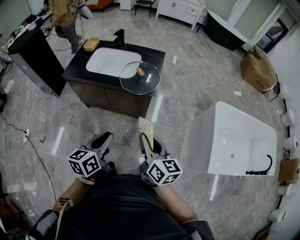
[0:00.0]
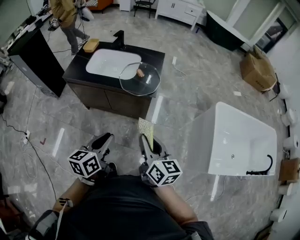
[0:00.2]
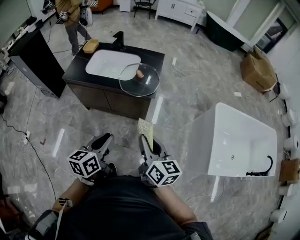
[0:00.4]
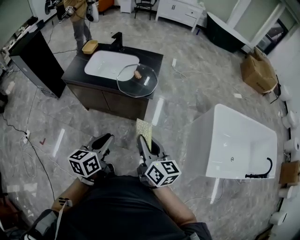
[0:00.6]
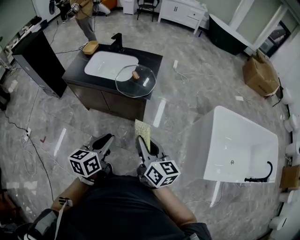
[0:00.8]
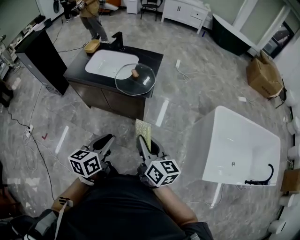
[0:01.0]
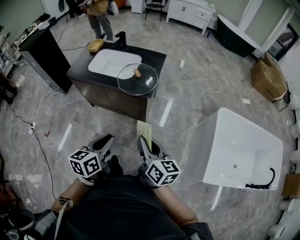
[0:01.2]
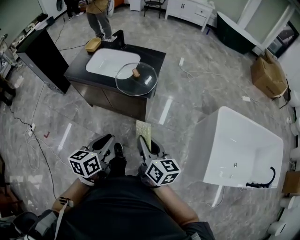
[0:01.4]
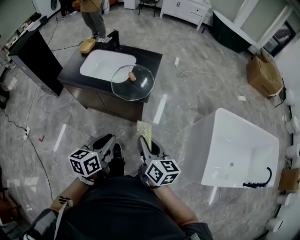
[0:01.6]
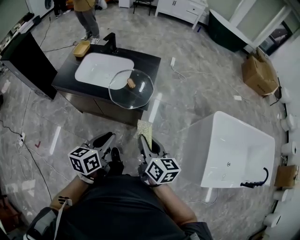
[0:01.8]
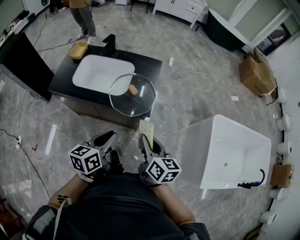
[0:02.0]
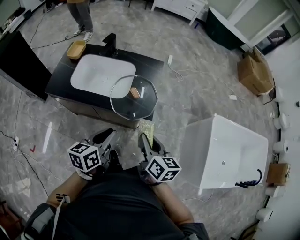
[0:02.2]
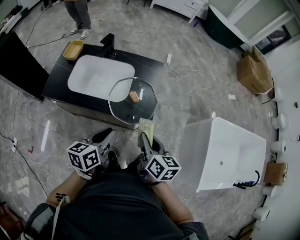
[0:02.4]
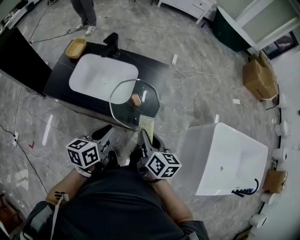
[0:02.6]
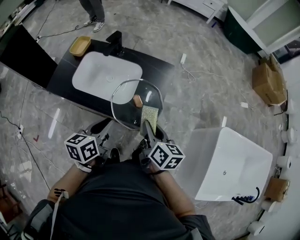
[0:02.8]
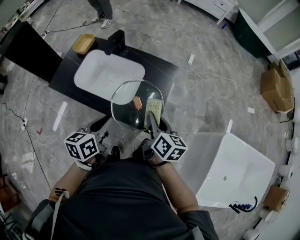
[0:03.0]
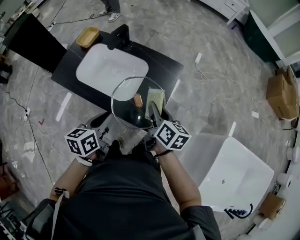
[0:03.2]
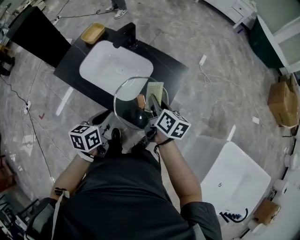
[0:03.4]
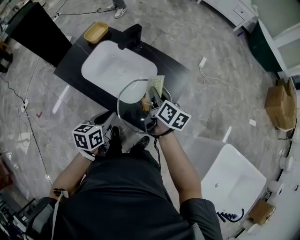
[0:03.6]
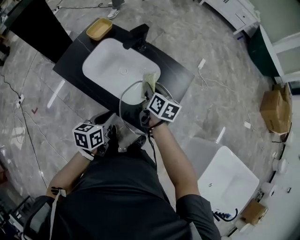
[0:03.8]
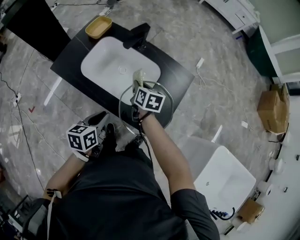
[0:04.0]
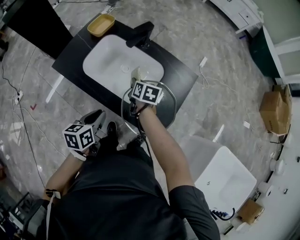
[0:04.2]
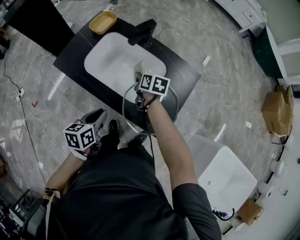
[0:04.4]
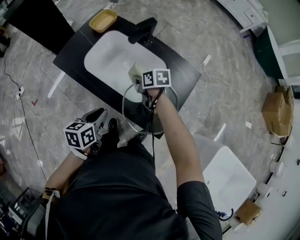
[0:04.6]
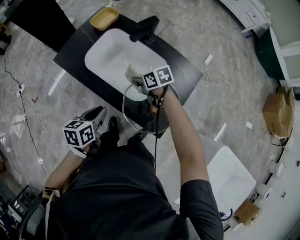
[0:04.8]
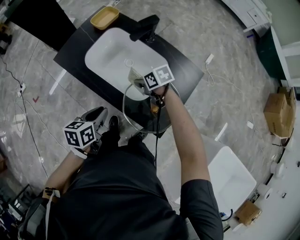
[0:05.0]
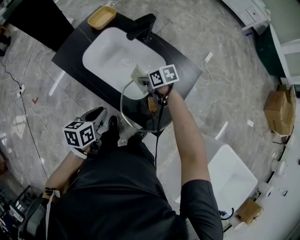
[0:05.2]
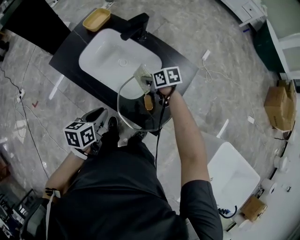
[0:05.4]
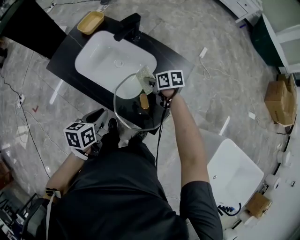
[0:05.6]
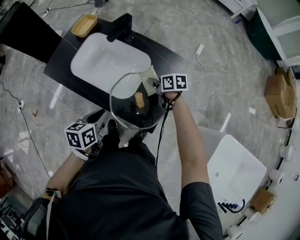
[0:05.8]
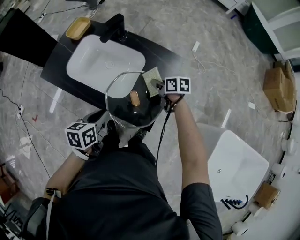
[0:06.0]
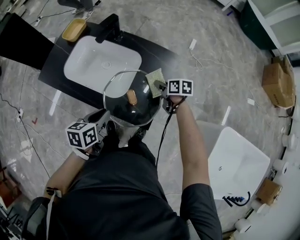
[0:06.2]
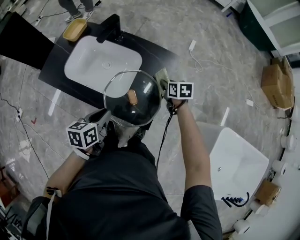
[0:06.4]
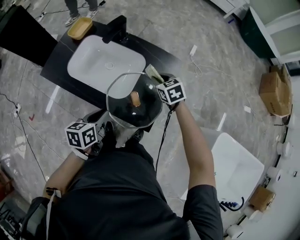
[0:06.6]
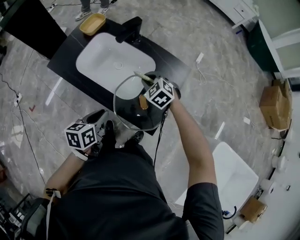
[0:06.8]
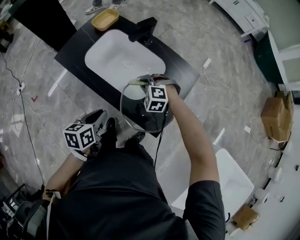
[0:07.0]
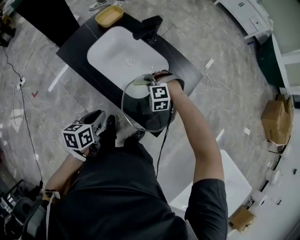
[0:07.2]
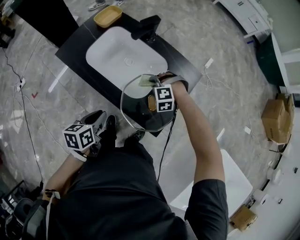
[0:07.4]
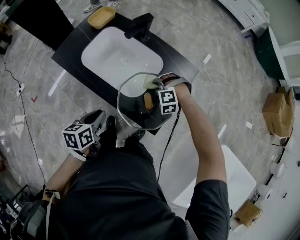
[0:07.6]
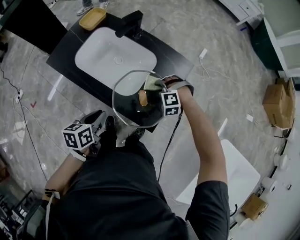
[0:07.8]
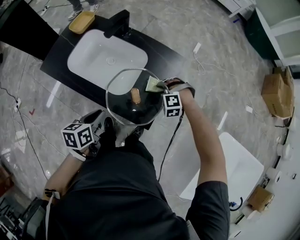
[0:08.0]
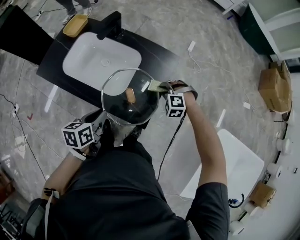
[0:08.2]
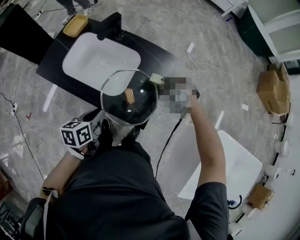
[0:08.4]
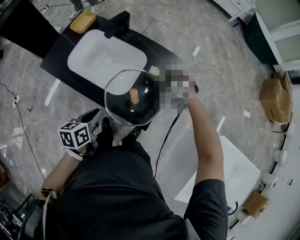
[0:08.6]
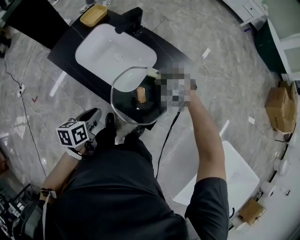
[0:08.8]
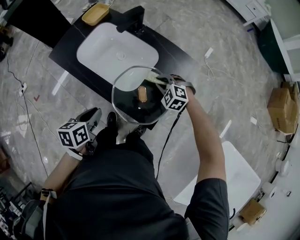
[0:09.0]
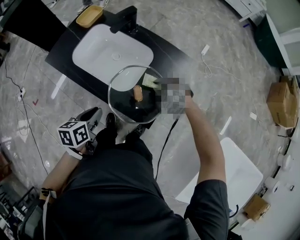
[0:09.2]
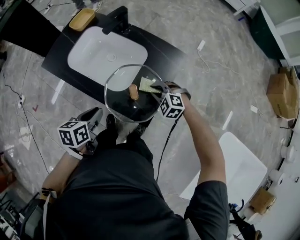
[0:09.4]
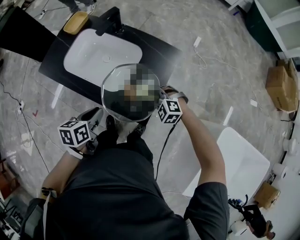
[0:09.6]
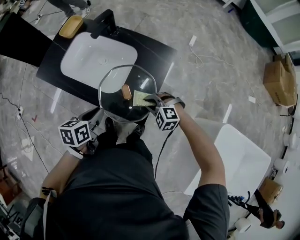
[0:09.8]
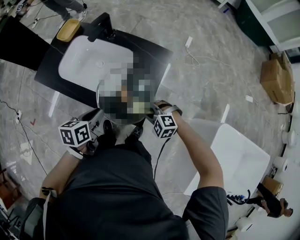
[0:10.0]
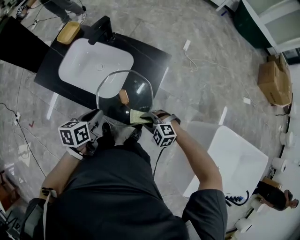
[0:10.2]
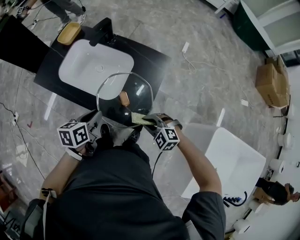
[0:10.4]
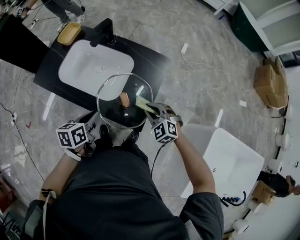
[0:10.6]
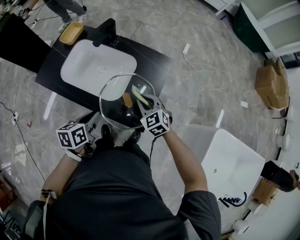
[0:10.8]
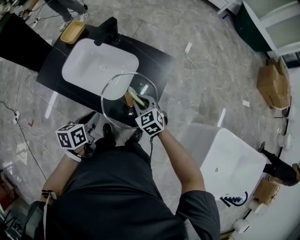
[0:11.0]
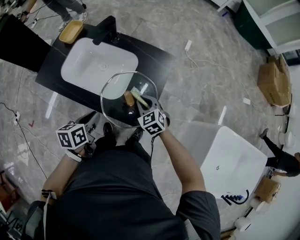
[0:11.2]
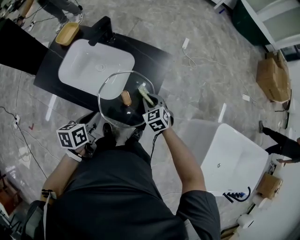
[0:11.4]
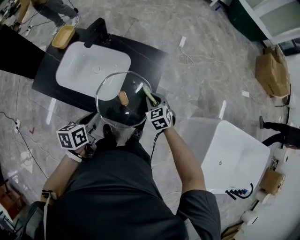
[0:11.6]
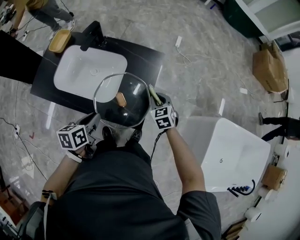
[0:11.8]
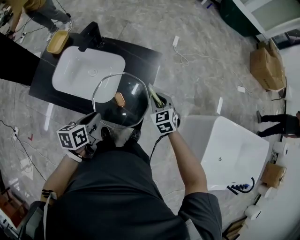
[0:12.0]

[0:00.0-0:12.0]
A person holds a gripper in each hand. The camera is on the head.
0.0 to 1.6 s: Both grippers travel together to the right and forward, approximately 10 cm.
1.6 to 3.0 s: The two grippers go approximately 35 cm forward.
3.0 to 4.4 s: The left gripper is displaced to the left and downward by about 15 cm; the right gripper goes approximately 35 cm forward, to the left and downward, and turns by some 30 degrees.
4.4 to 6.0 s: The left gripper moves to the right, some 10 cm. Meanwhile the right gripper moves to the right and backward, about 20 cm.
6.0 to 7.6 s: The left gripper shifts roughly 10 cm to the left. Meanwhile the right gripper moves left and right over about 25 cm, changing direction 2 times, and rotates around the line of its fingers by about 120 degrees, counterclockwise from behind.
7.6 to 9.0 s: The right gripper moves roughly 15 cm to the right and comes back, and swivels some 30 degrees; the left gripper moves approximately 10 cm to the right and comes back.
9.0 to 10.4 s: The left gripper heads to the right, covering about 5 cm, while the right gripper goes about 20 cm backward.
10.4 to 12.0 s: The right gripper ends up roughly 15 cm from where it was, and changes its angle by approximately 50 degrees.

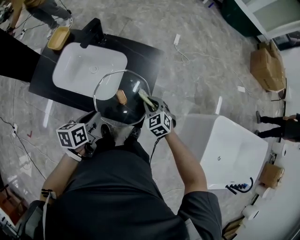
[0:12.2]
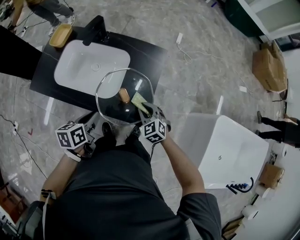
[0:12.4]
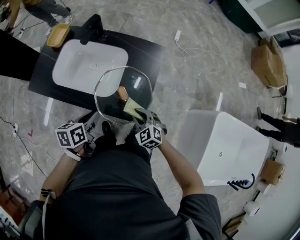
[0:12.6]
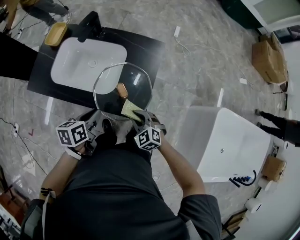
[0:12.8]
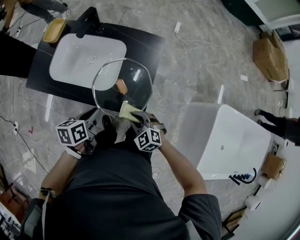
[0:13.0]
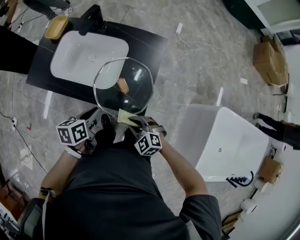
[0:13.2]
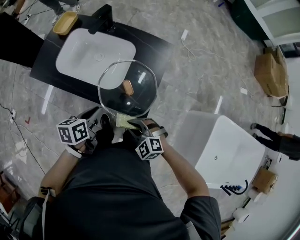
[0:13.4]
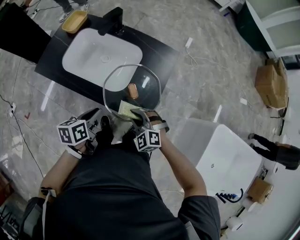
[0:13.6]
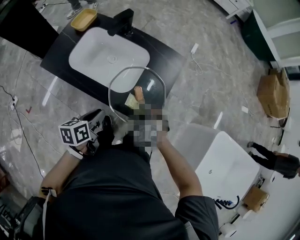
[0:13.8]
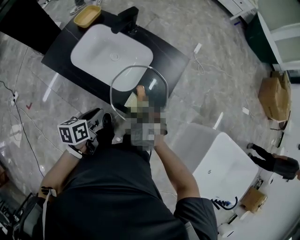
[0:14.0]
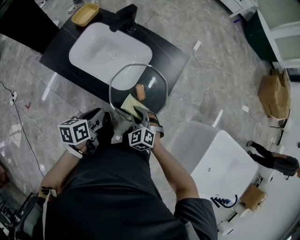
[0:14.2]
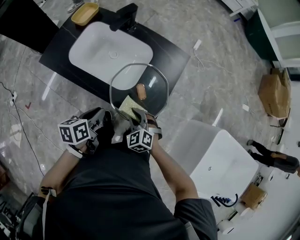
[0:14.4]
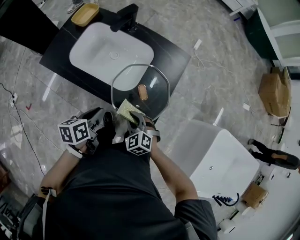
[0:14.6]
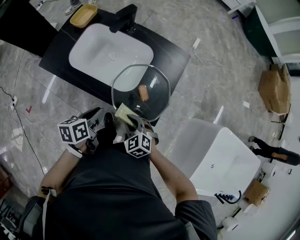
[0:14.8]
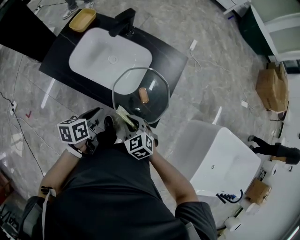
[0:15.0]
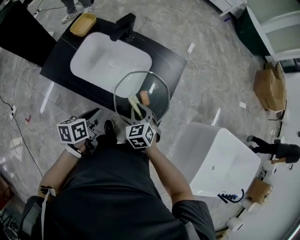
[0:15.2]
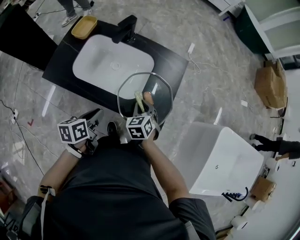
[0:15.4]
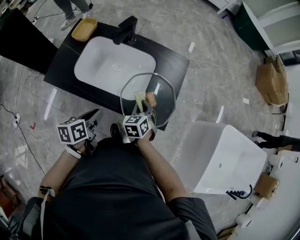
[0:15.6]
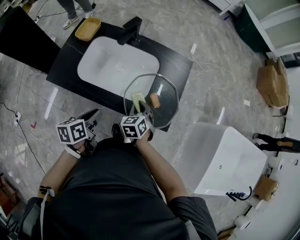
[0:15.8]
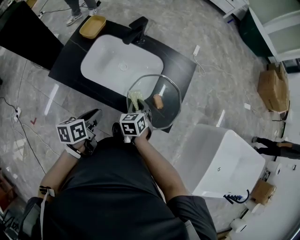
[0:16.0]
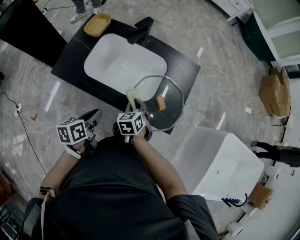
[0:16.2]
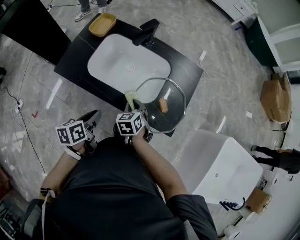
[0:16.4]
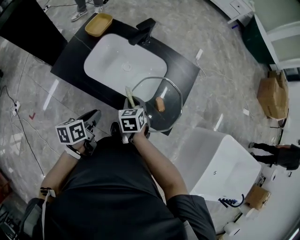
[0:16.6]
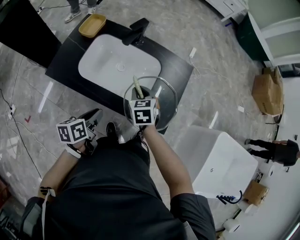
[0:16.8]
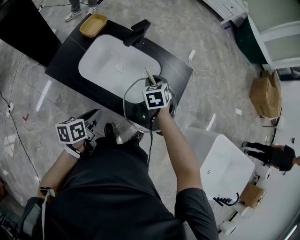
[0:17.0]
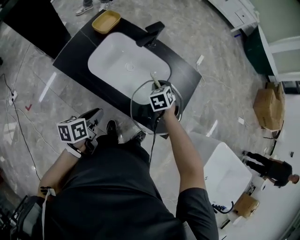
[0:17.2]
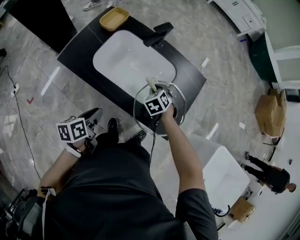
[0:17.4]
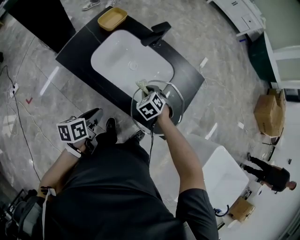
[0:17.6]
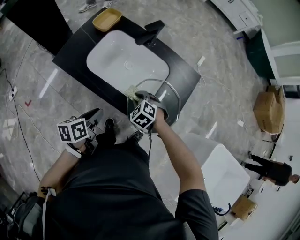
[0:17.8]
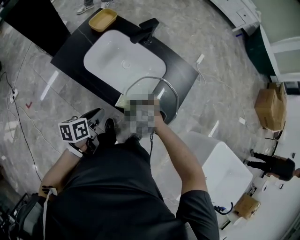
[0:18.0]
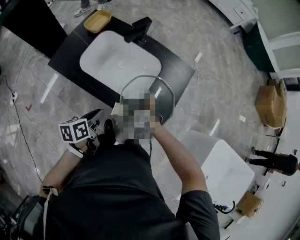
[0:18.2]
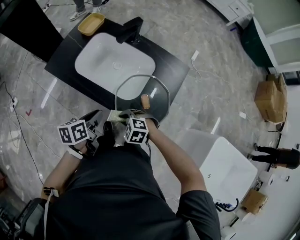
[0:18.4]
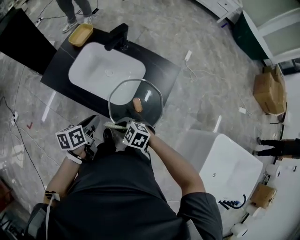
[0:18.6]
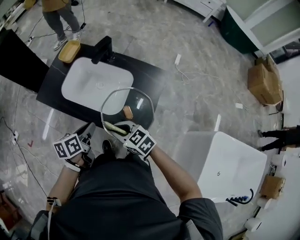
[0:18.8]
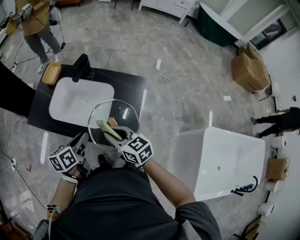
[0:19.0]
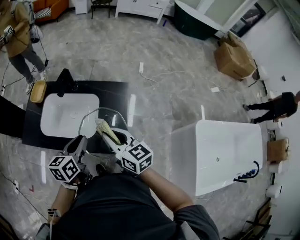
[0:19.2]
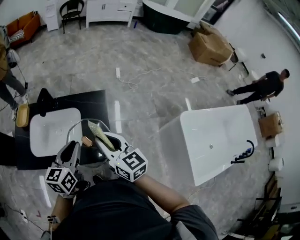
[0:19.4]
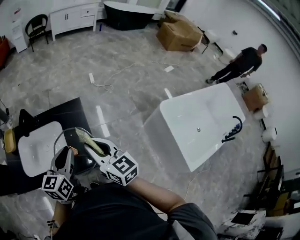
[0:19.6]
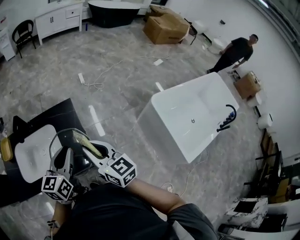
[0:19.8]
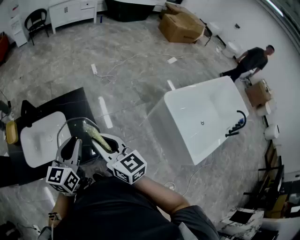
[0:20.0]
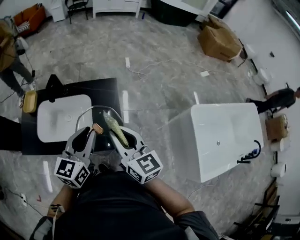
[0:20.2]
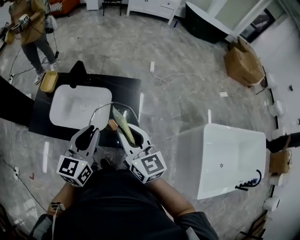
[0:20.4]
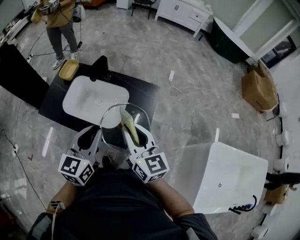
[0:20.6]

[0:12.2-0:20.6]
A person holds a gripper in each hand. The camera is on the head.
12.2 to 13.6 s: The right gripper moves to the left and backward, roughly 15 cm, and rotates roughly 30 degrees.
13.6 to 15.0 s: The grippers both shift to the left by roughly 5 cm. The right gripper turns by about 30 degrees.
15.0 to 16.4 s: The left gripper shifts about 10 cm to the left; the right gripper shifts roughly 15 cm to the left and forward, and turns by roughly 30 degrees.
16.4 to 17.8 s: The right gripper travels forward and back again, approximately 15 cm each way, and rolls counterclockwise, seen from behind, by roughly 40 degrees.
17.8 to 19.2 s: The right gripper shifts some 30 cm upward, and tips its fingers upward by some 50 degrees. Meanwhile the left gripper moves about 30 cm, and changes its angle by roughly 30 degrees.
19.2 to 20.6 s: Both grippers travel together upward, about 5 cm. The left gripper moves some 10 cm to the right and comes back, and changes its angle by about 20 degrees; the right gripper goes to the right and returns, roughly 10 cm each way.

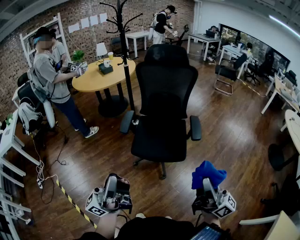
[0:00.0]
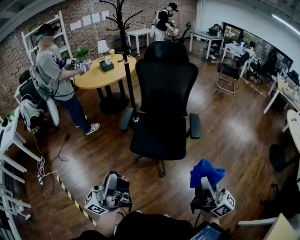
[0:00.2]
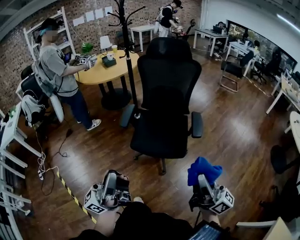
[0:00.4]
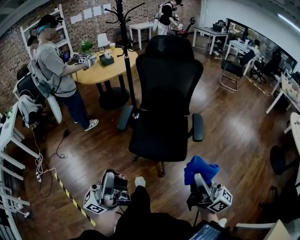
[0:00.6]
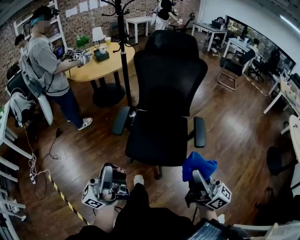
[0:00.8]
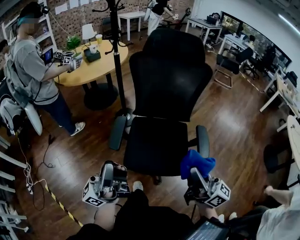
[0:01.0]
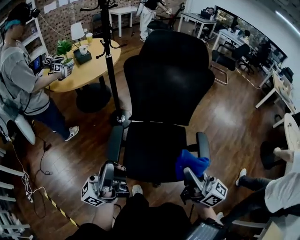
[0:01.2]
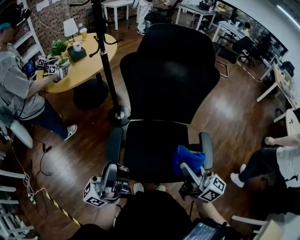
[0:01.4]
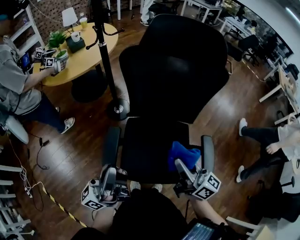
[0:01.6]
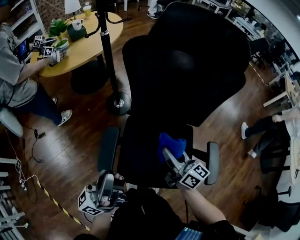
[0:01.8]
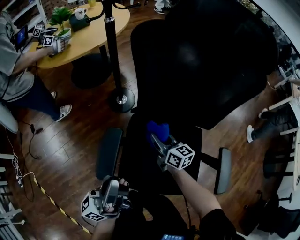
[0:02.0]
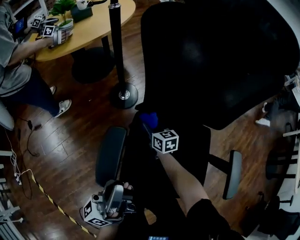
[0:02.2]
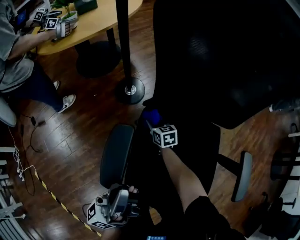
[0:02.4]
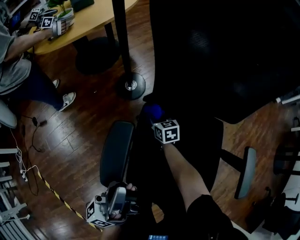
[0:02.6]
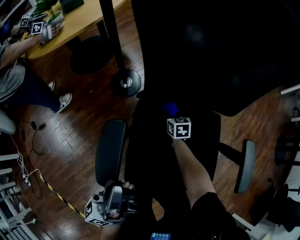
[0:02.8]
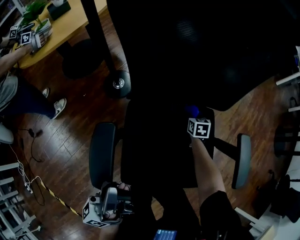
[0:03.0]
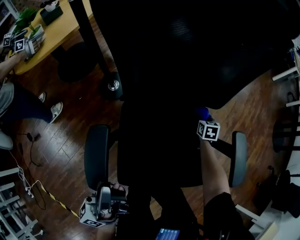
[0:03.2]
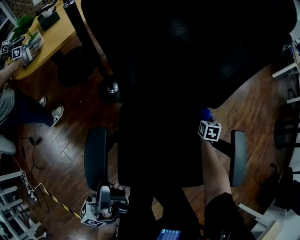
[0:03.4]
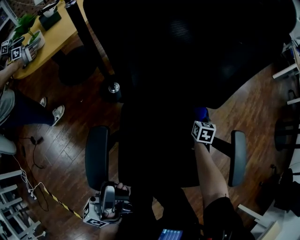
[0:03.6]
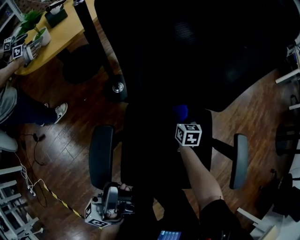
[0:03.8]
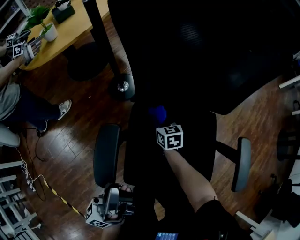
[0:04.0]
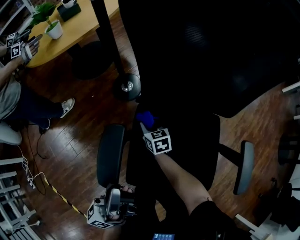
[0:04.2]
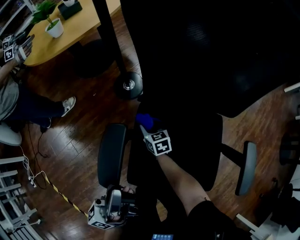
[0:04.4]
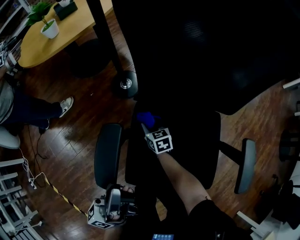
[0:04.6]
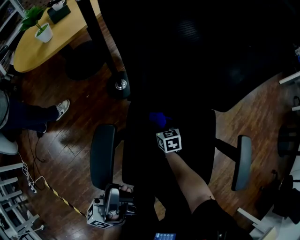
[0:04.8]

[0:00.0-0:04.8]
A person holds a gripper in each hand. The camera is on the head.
0.0 to 1.6 s: Both grippers are carried forward, some 50 cm. The right gripper changes its angle by about 20 degrees.
1.6 to 3.2 s: The right gripper heads downward, covering roughly 40 cm, and points its fingers about 60 degrees further downward, while the left gripper heads downward, covering some 20 cm.
3.2 to 4.8 s: The right gripper shifts by about 30 cm, and changes its angle by about 30 degrees.
